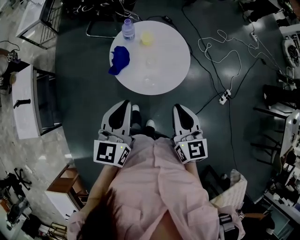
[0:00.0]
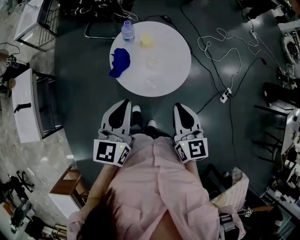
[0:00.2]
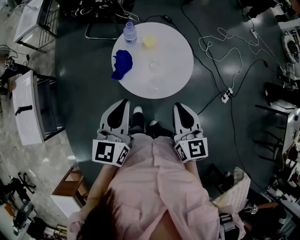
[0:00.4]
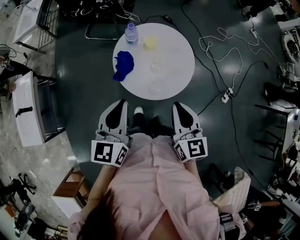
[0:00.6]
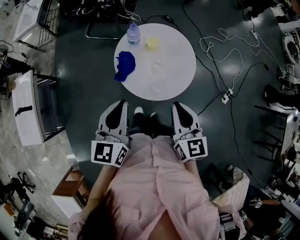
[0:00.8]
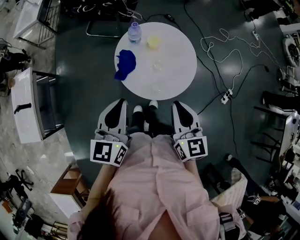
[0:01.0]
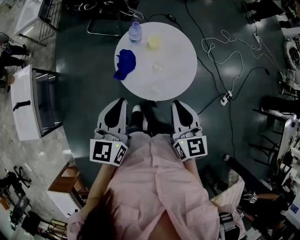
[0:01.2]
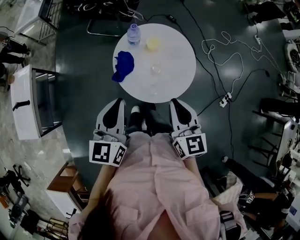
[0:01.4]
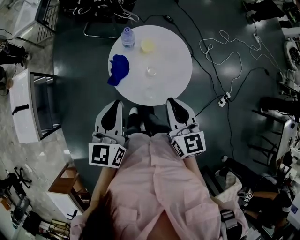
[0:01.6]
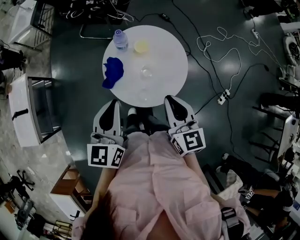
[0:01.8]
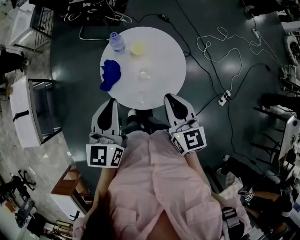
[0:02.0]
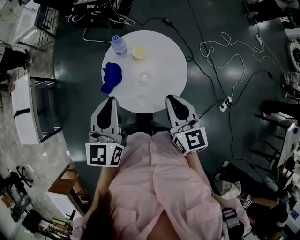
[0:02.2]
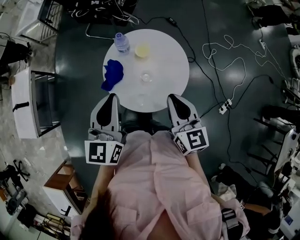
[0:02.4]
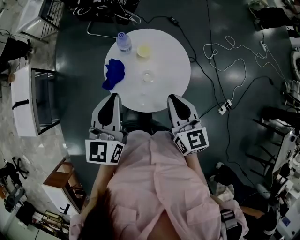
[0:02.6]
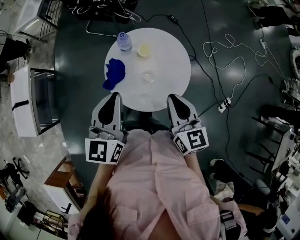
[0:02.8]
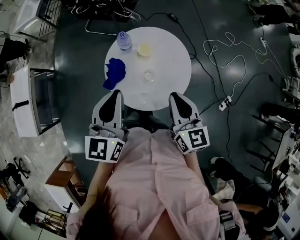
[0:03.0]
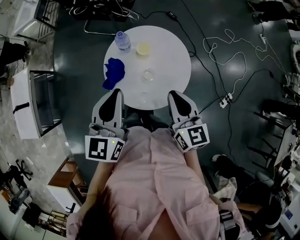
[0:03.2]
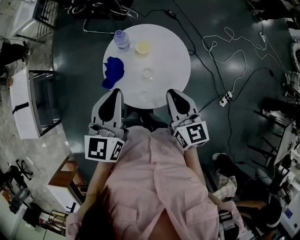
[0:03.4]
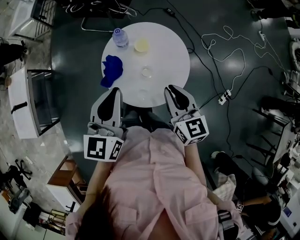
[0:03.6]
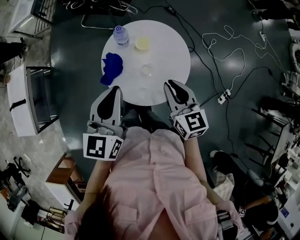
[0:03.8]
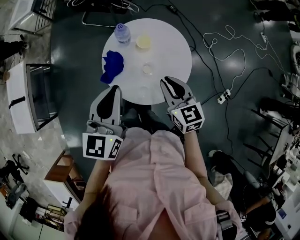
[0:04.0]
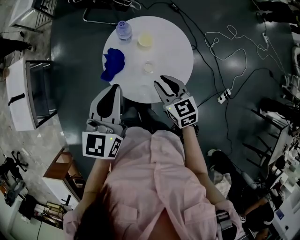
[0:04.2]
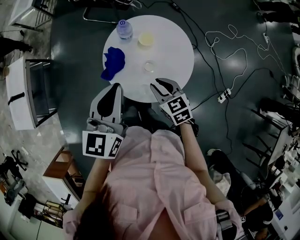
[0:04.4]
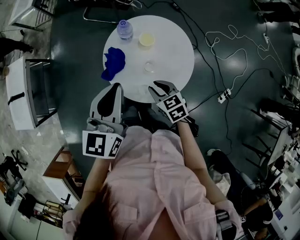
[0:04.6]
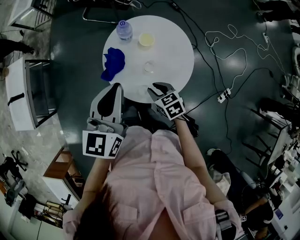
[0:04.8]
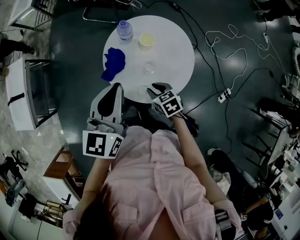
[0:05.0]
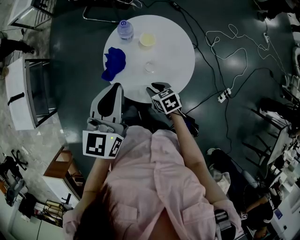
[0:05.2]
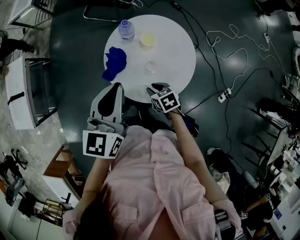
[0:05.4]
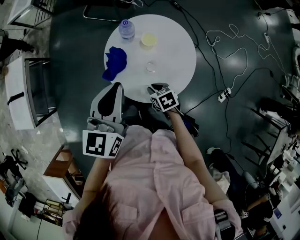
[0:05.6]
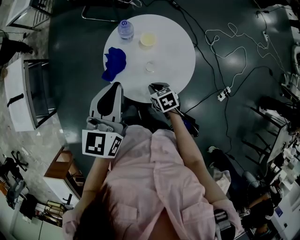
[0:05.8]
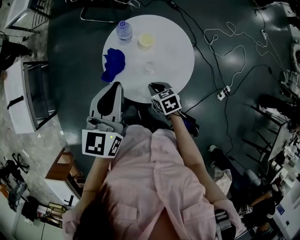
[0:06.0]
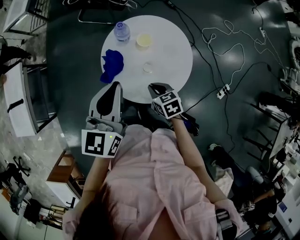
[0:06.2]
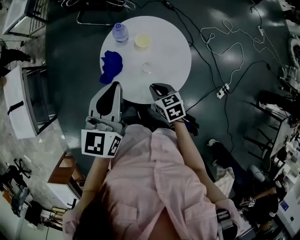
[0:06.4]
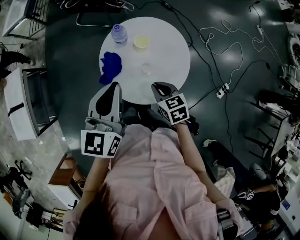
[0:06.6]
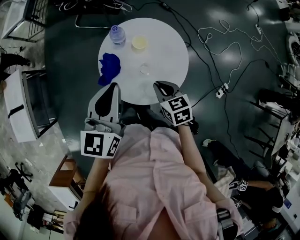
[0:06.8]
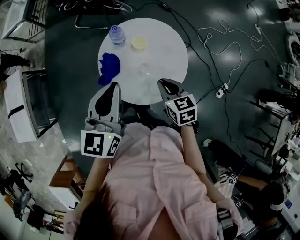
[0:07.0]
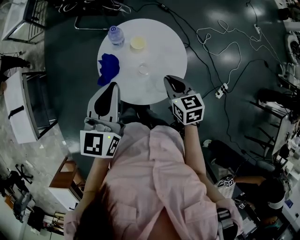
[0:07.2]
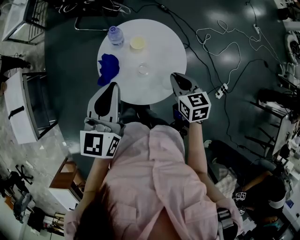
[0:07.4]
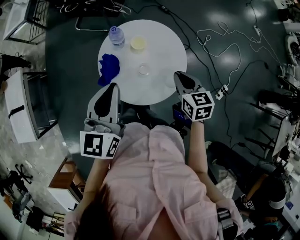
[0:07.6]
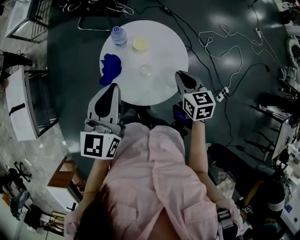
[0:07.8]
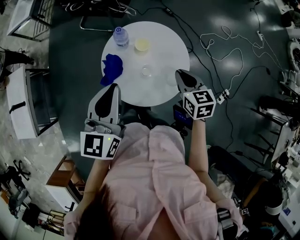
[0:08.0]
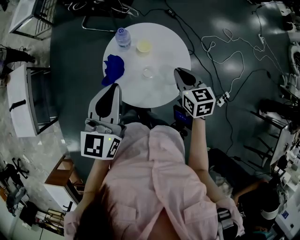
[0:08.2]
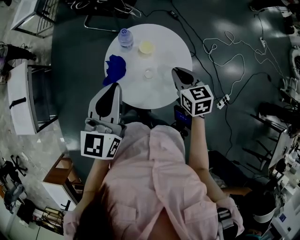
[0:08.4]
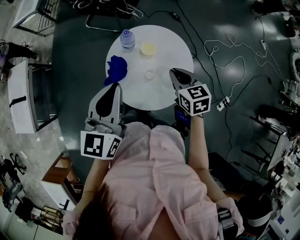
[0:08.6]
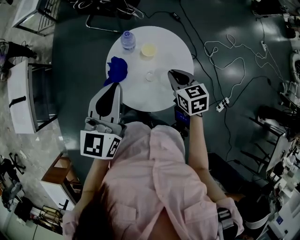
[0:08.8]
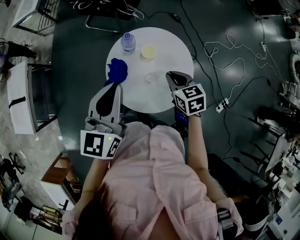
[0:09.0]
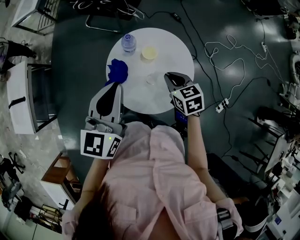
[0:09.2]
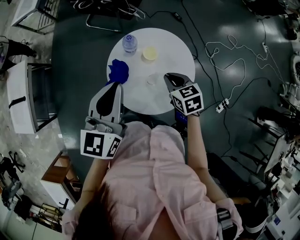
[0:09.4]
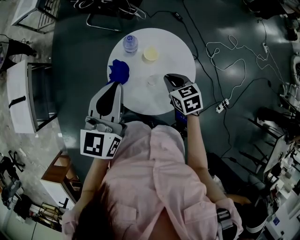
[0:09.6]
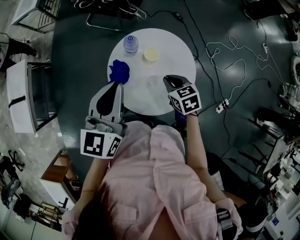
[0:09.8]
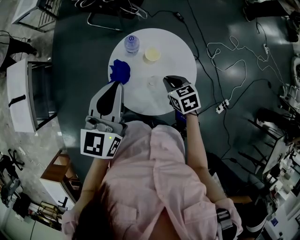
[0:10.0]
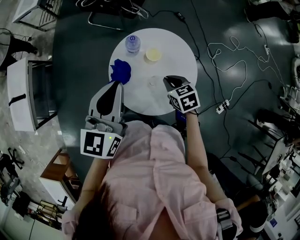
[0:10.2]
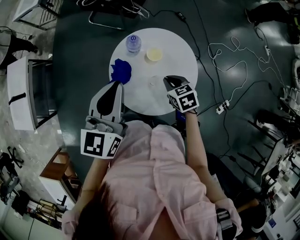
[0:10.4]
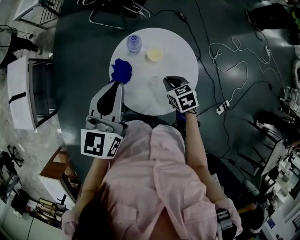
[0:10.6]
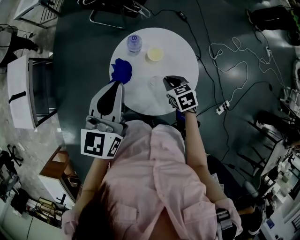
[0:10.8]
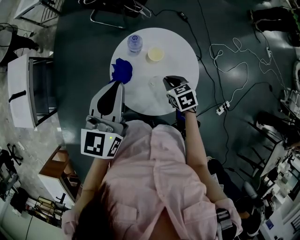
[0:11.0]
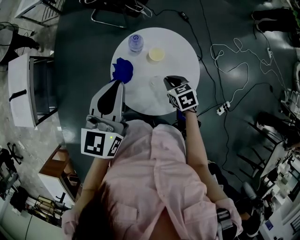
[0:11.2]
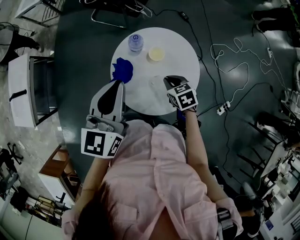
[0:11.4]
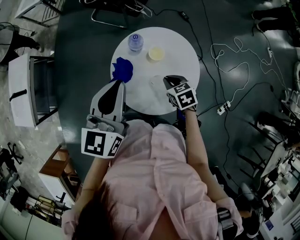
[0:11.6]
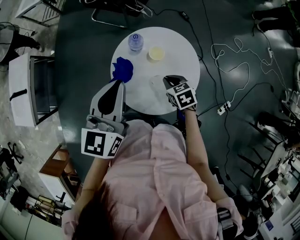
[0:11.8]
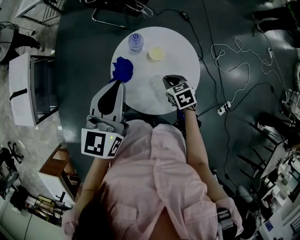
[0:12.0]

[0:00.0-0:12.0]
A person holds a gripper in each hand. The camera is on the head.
0:00.0 to 0:01.6: The two grippers go some 10 cm forward.
0:01.6 to 0:03.0: Both grippers travel together forward, roughly 5 cm.
0:03.0 to 0:04.4: The right gripper is displaced downward by roughly 15 cm, and rotates roughly 30 degrees.
0:04.4 to 0:06.0: The right gripper heads downward, covering about 10 cm, and swivels some 20 degrees.
0:06.0 to 0:07.6: The right gripper heads upward and to the right, covering approximately 20 cm, and rotates approximately 30 degrees.
0:07.6 to 0:09.0: The right gripper goes approximately 10 cm forward and to the left.
0:09.0 to 0:10.4: The right gripper shifts approximately 5 cm downward.
0:10.4 to 0:12.0: The grippers stay close to where they were, moving slightly.

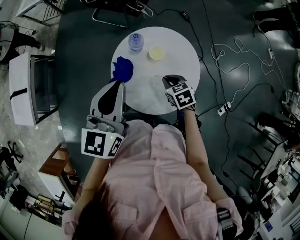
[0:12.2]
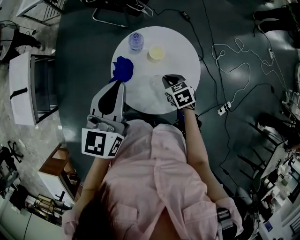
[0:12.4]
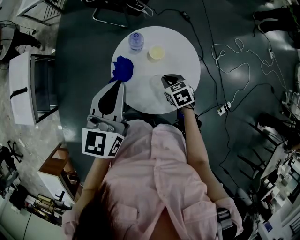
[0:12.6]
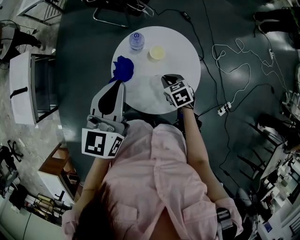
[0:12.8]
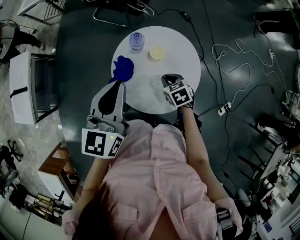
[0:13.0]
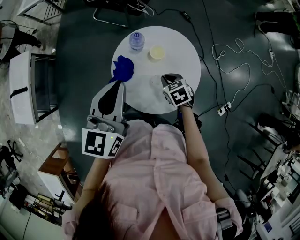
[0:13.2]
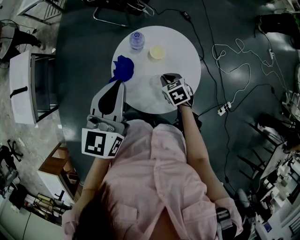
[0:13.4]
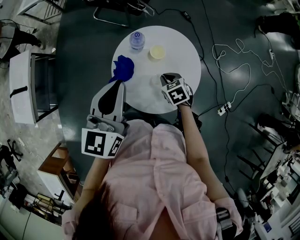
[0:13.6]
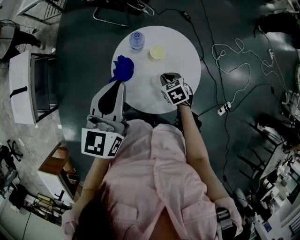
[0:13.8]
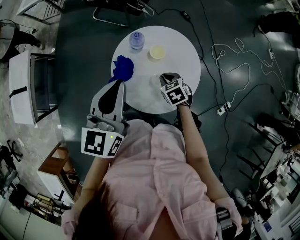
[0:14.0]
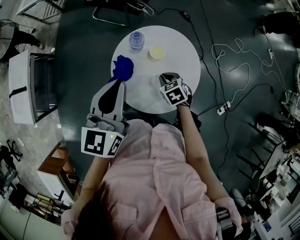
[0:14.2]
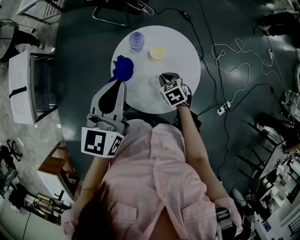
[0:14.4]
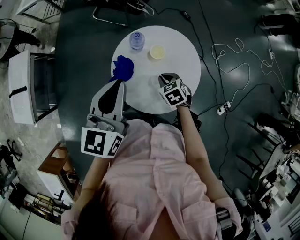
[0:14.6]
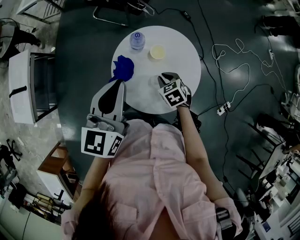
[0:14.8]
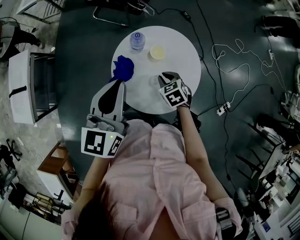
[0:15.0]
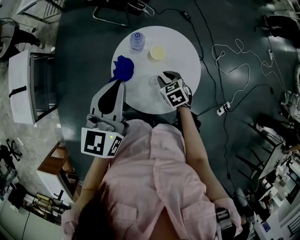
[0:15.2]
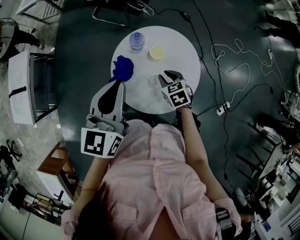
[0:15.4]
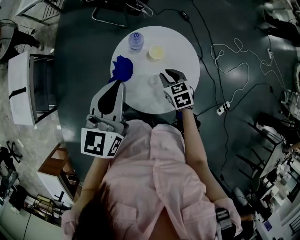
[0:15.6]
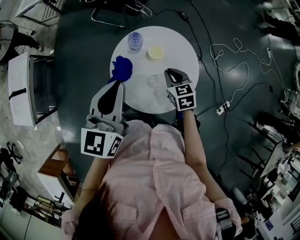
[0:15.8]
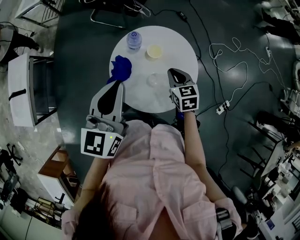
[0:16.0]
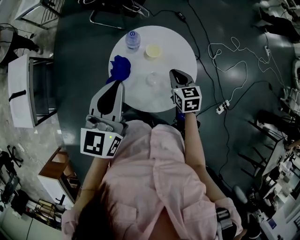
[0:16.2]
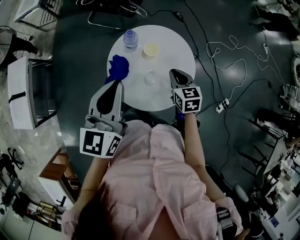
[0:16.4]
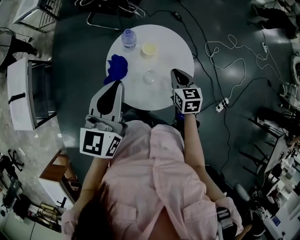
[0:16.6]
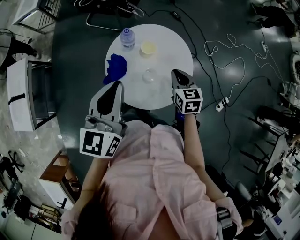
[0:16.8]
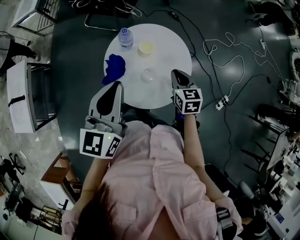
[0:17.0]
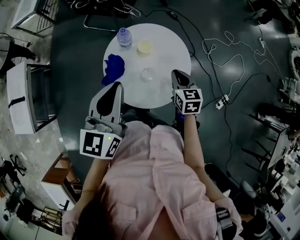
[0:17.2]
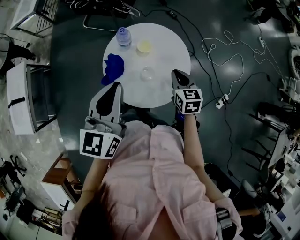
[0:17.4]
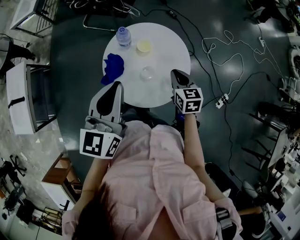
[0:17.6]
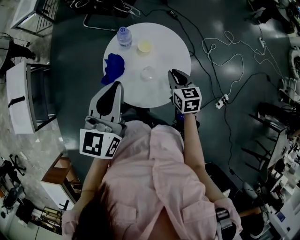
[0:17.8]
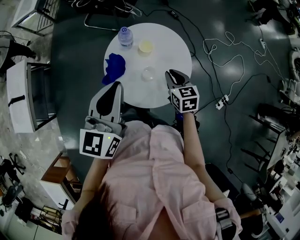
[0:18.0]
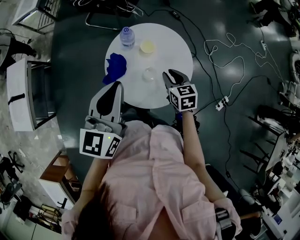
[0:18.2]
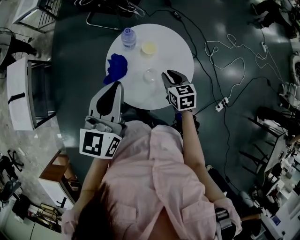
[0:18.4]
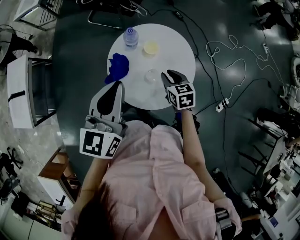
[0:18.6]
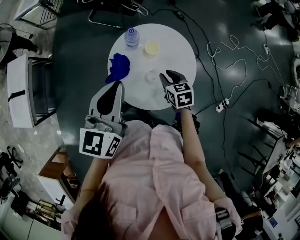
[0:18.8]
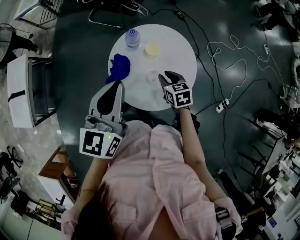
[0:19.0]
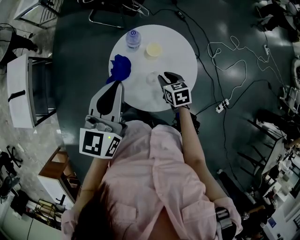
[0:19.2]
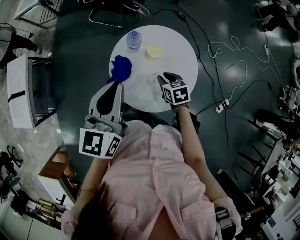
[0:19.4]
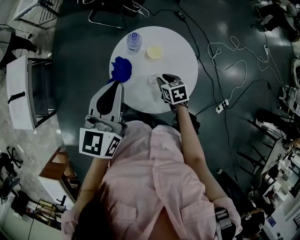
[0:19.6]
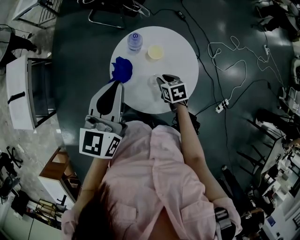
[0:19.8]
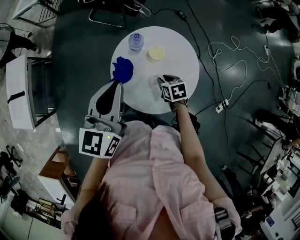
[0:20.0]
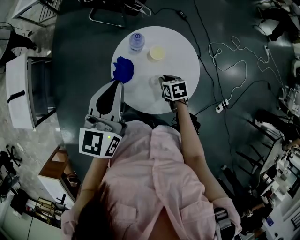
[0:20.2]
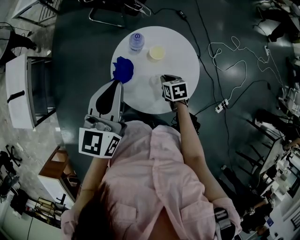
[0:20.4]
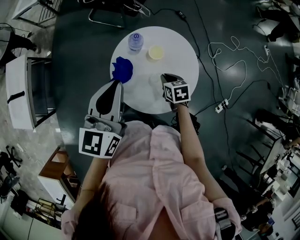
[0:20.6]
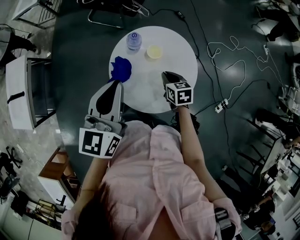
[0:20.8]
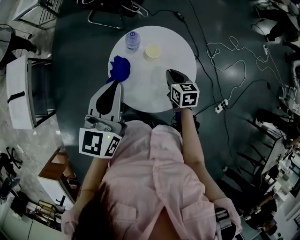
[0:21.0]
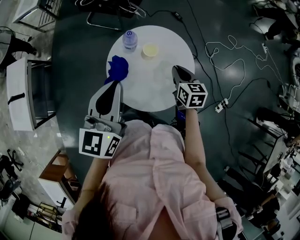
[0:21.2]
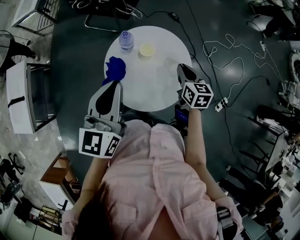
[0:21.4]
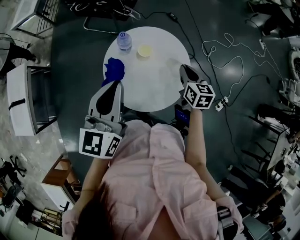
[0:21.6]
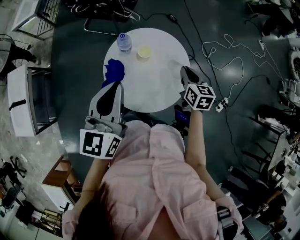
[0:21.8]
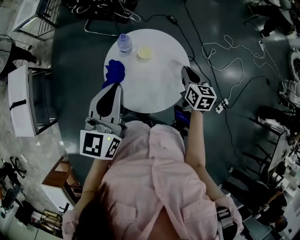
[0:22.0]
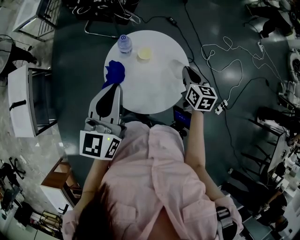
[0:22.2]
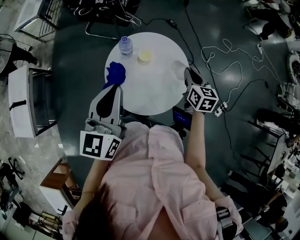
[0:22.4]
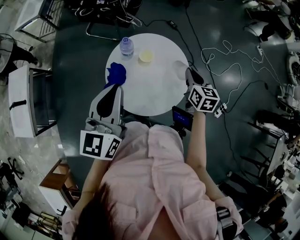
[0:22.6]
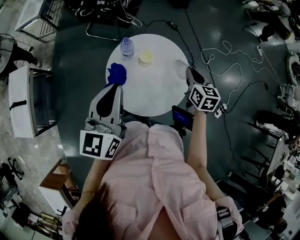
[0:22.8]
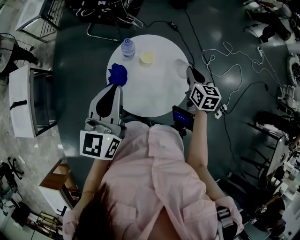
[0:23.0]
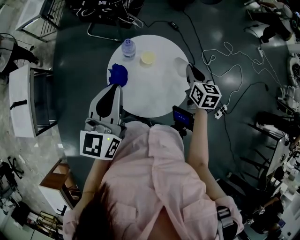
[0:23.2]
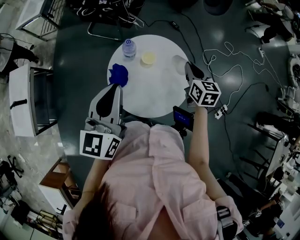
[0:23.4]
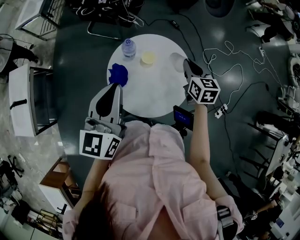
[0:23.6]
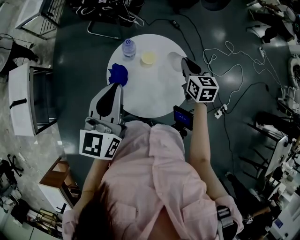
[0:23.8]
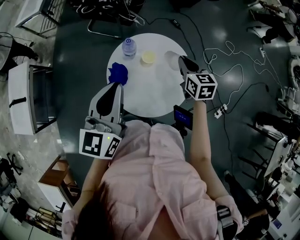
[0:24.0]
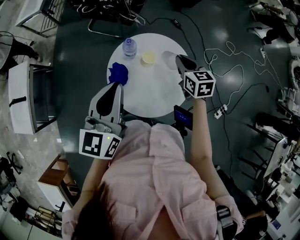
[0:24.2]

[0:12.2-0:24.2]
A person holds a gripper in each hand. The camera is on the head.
0:12.2 to 0:15.2: The grippers make only small movements.
0:15.2 to 0:16.6: The right gripper travels to the right and upward by some 10 cm, and changes its angle by approximately 30 degrees.
0:16.6 to 0:18.2: The grippers move only a little.
0:18.2 to 0:19.8: The left gripper moves approximately 5 cm. The right gripper is displaced downward by some 10 cm, and turns by about 20 degrees.
0:19.8 to 0:21.2: The right gripper travels upward and to the right by some 10 cm, and changes its angle by about 30 degrees.
0:21.2 to 0:22.6: The right gripper is displaced to the right and upward by roughly 10 cm.
0:22.6 to 0:24.2: The right gripper travels to the left and forward by roughly 10 cm.
